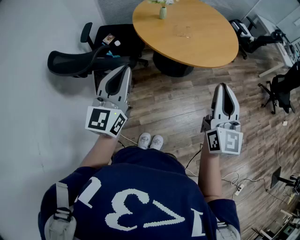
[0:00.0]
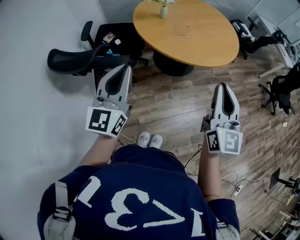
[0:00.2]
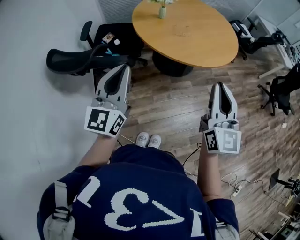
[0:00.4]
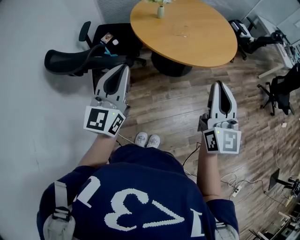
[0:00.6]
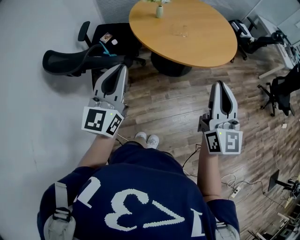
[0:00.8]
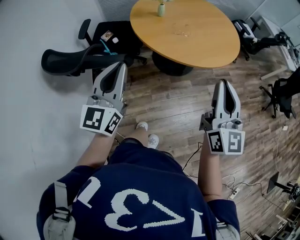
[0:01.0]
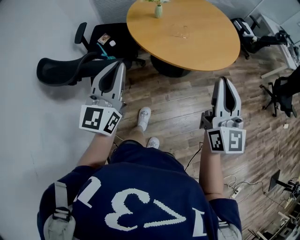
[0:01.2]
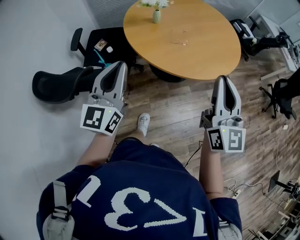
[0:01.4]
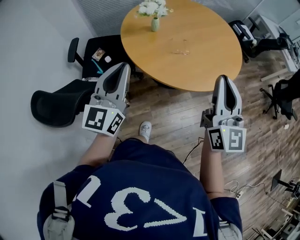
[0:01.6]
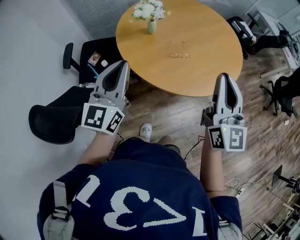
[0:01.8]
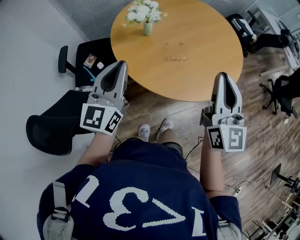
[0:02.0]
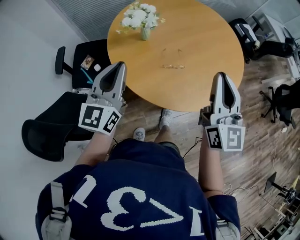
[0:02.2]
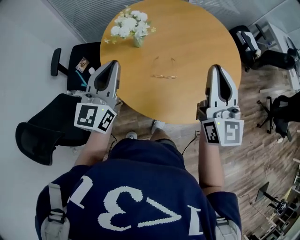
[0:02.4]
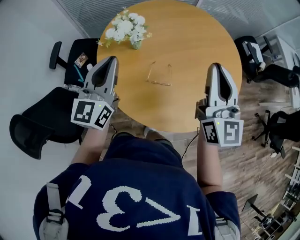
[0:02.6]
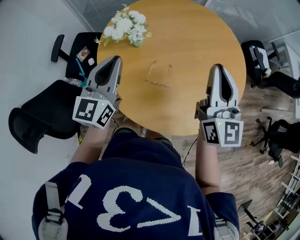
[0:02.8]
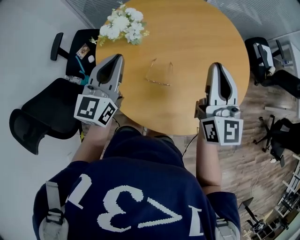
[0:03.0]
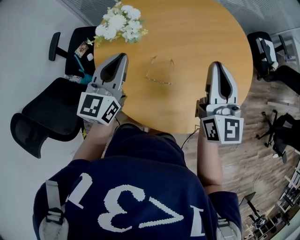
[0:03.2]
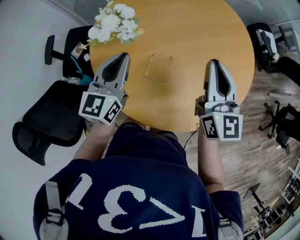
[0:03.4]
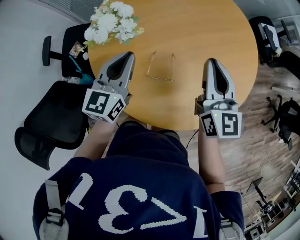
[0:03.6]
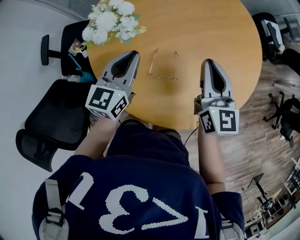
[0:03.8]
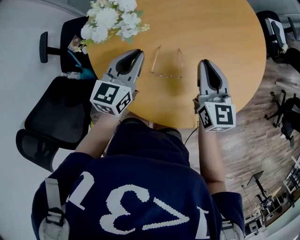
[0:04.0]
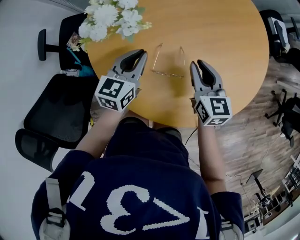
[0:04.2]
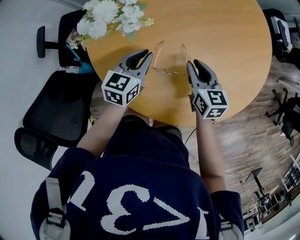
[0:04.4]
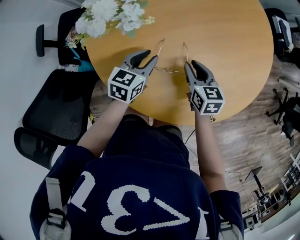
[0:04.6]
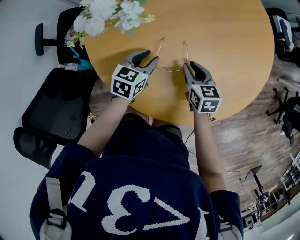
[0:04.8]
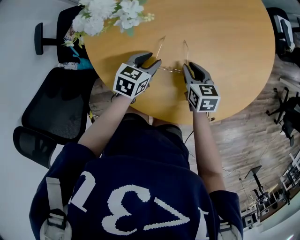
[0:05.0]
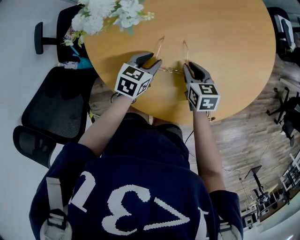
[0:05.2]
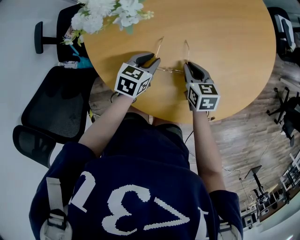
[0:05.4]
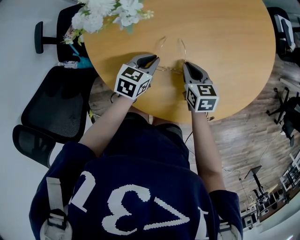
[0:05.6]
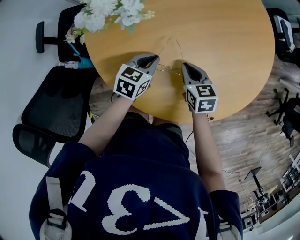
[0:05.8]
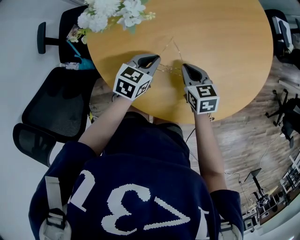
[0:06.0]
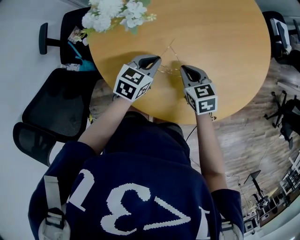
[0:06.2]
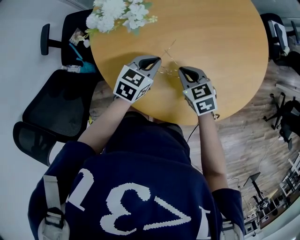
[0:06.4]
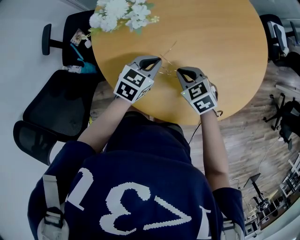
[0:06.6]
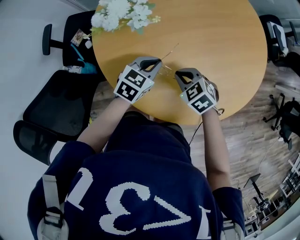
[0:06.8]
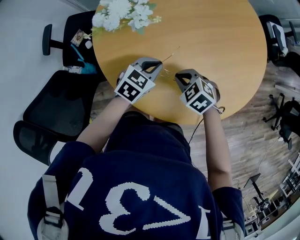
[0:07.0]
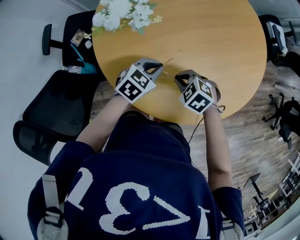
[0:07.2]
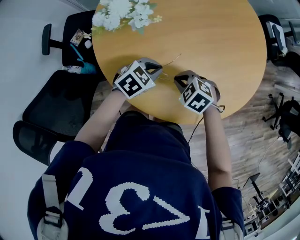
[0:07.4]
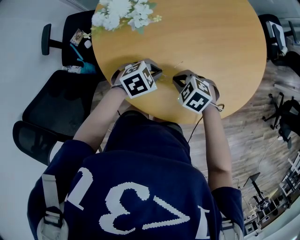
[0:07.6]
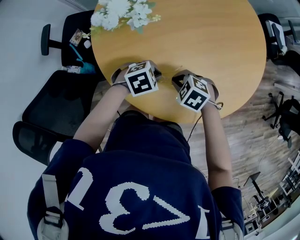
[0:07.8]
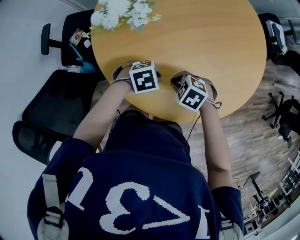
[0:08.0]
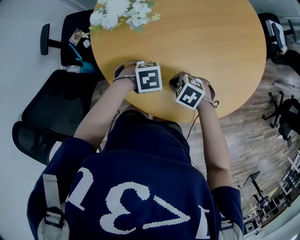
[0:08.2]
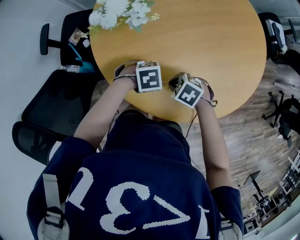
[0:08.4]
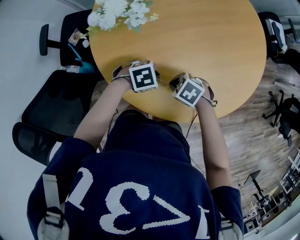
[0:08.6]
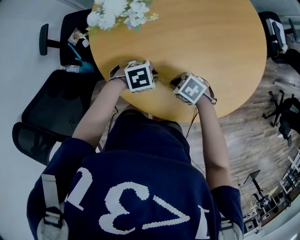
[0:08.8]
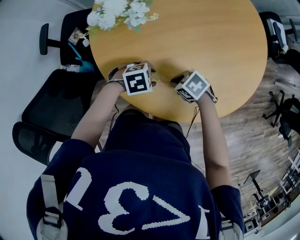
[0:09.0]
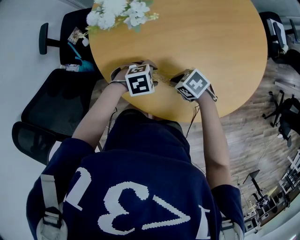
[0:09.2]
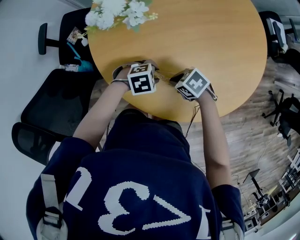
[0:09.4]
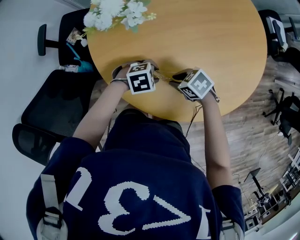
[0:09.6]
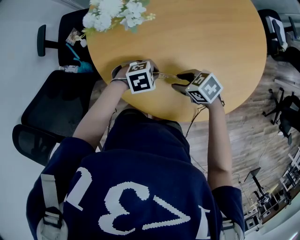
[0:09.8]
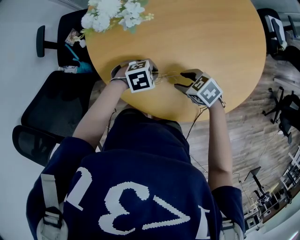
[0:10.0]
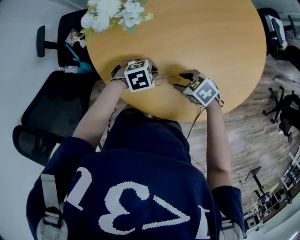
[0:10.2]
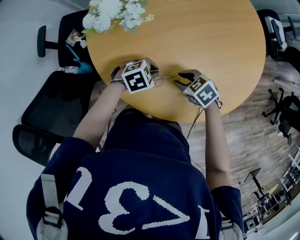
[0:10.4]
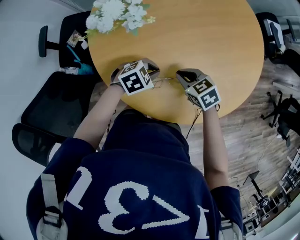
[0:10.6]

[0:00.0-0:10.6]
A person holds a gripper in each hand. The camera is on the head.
0:00.0 to 0:01.6: The two grippers go about 20 cm forward.
0:01.6 to 0:03.0: The grippers both shift forward by about 35 cm.
0:03.0 to 0:04.6: The grippers both shift downward by about 30 cm. The right gripper points its fingers some 40 degrees further downward, while the left gripper tilts its fingers about 30 degrees downward, and opens.
0:04.6 to 0:06.0: The left gripper closes its fingers.
0:06.0 to 0:07.6: The right gripper shifts by roughly 10 cm, and turns by roughly 50 degrees, while the left gripper changes place by approximately 5 cm, and rotates roughly 40 degrees.
0:07.6 to 0:09.0: The left gripper moves roughly 5 cm, and opens up. Meanwhile the right gripper changes its angle by about 20 degrees.
0:09.0 to 0:10.6: The left gripper closes; the right gripper moves roughly 10 cm, turns by some 30 degrees, and opens, then closes again.

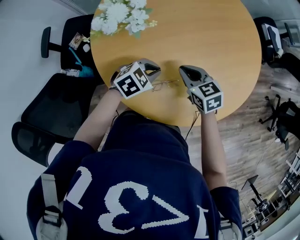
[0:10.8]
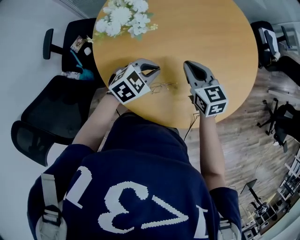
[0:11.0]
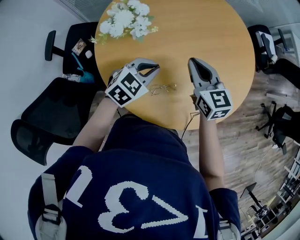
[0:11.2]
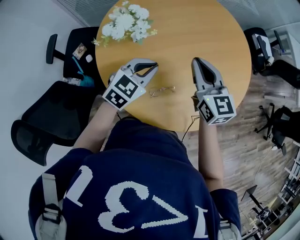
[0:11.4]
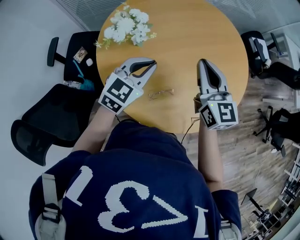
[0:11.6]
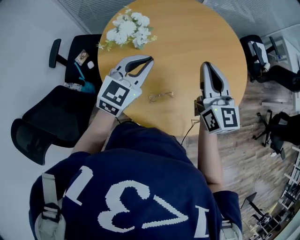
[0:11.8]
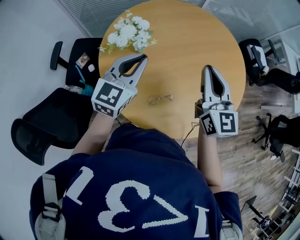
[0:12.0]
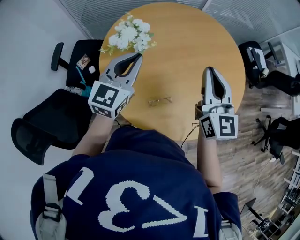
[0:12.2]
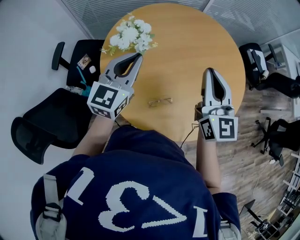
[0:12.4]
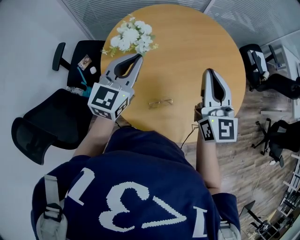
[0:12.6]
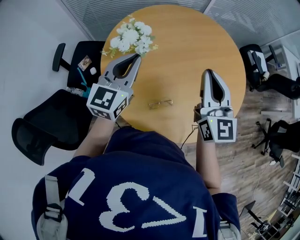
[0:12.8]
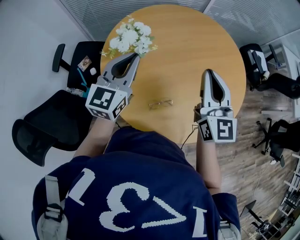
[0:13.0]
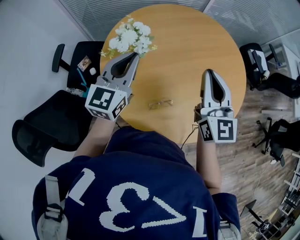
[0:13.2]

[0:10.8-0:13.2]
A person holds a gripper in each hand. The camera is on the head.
0:10.8 to 0:12.0: The two grippers go roughly 25 cm upward. The right gripper tips its fingers upward by some 40 degrees. Meanwhile the left gripper angles its fingers upward, by roughly 40 degrees.
0:12.0 to 0:13.2: There are only small adjustments of the grippers.

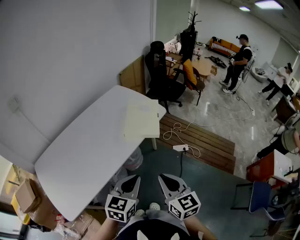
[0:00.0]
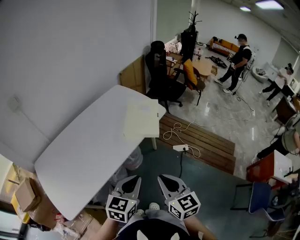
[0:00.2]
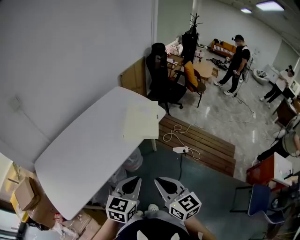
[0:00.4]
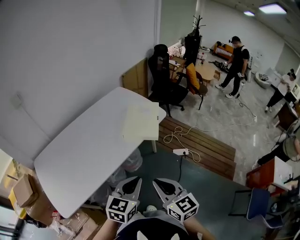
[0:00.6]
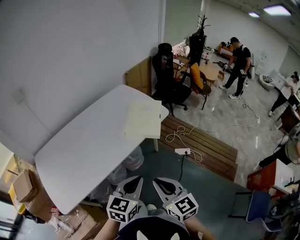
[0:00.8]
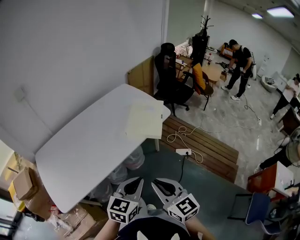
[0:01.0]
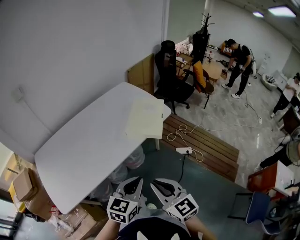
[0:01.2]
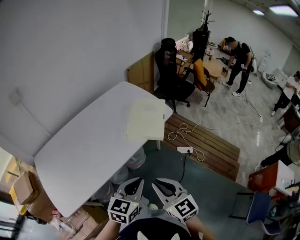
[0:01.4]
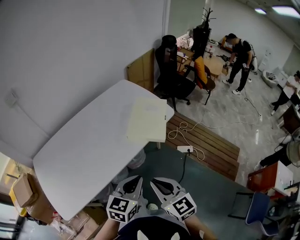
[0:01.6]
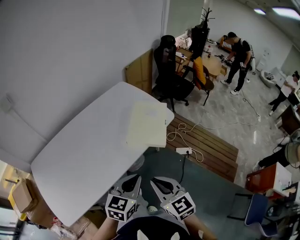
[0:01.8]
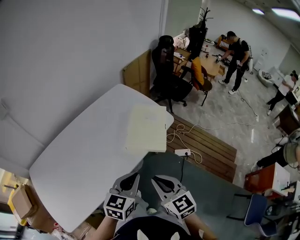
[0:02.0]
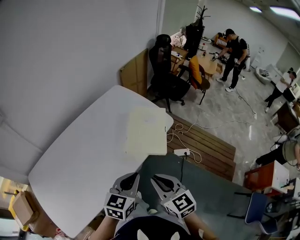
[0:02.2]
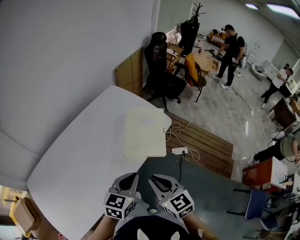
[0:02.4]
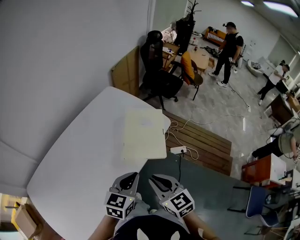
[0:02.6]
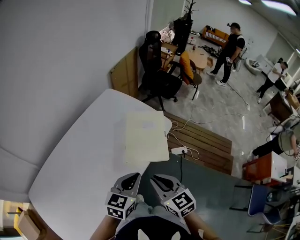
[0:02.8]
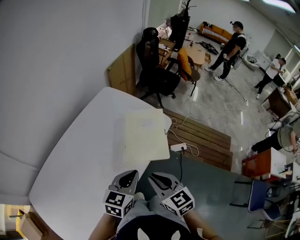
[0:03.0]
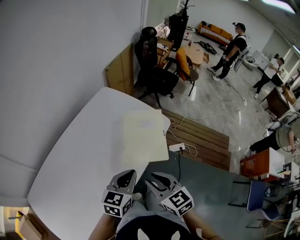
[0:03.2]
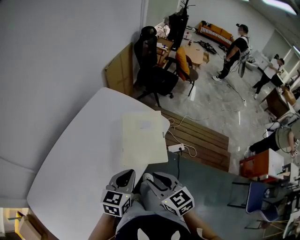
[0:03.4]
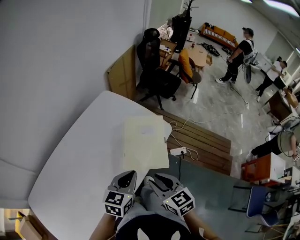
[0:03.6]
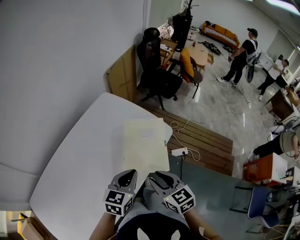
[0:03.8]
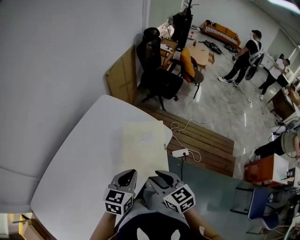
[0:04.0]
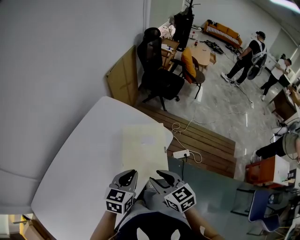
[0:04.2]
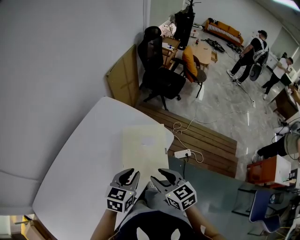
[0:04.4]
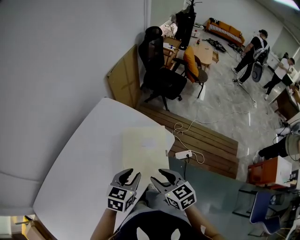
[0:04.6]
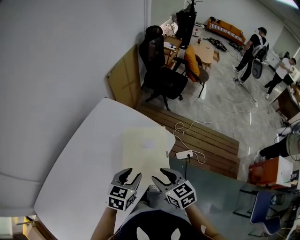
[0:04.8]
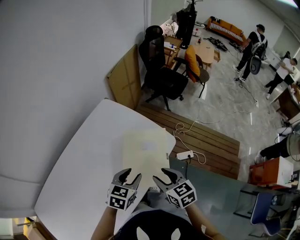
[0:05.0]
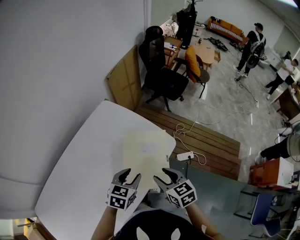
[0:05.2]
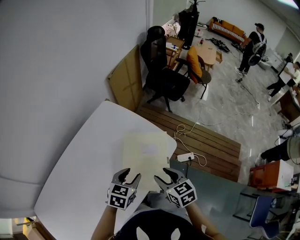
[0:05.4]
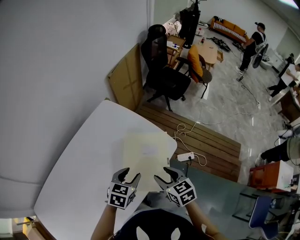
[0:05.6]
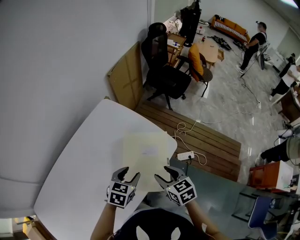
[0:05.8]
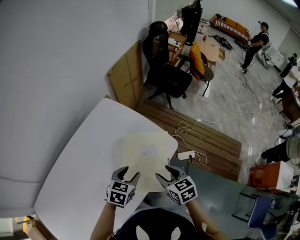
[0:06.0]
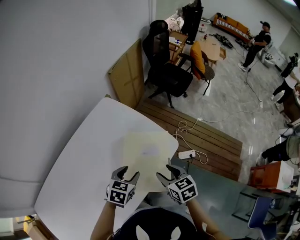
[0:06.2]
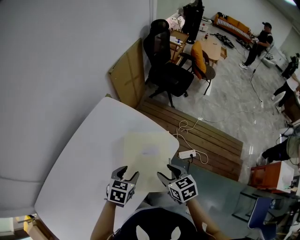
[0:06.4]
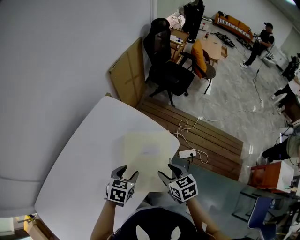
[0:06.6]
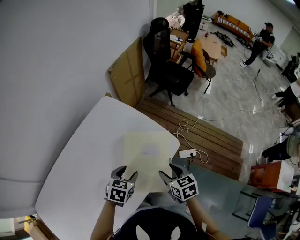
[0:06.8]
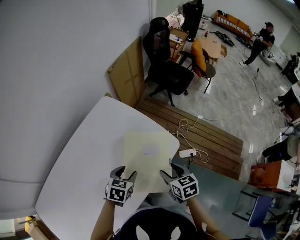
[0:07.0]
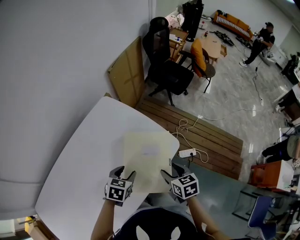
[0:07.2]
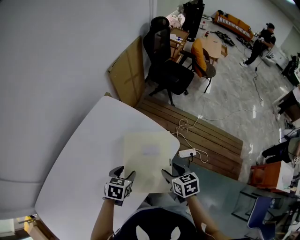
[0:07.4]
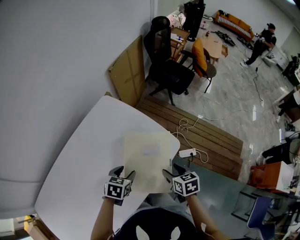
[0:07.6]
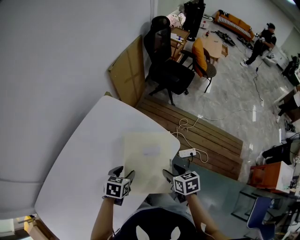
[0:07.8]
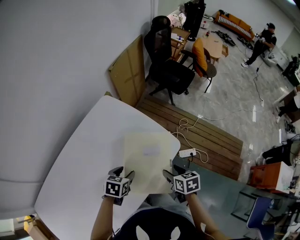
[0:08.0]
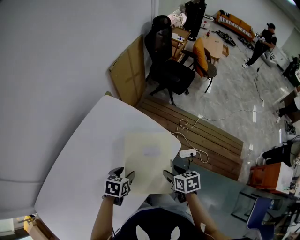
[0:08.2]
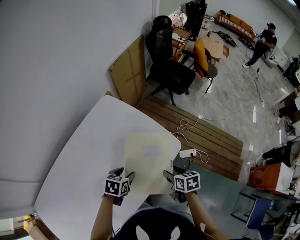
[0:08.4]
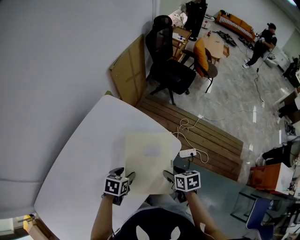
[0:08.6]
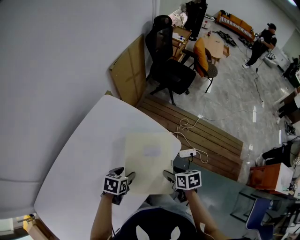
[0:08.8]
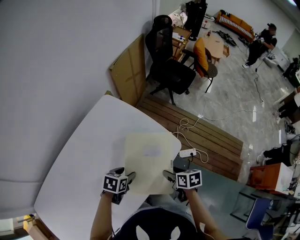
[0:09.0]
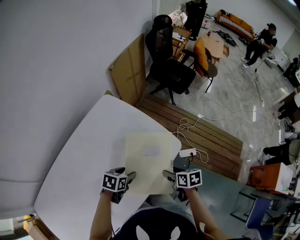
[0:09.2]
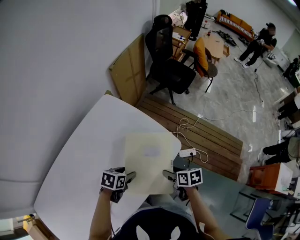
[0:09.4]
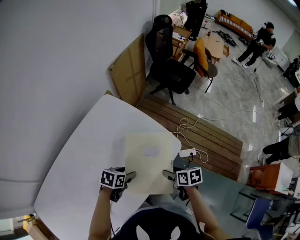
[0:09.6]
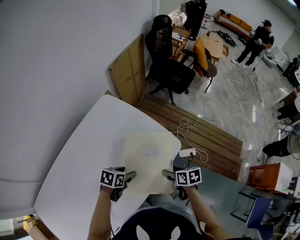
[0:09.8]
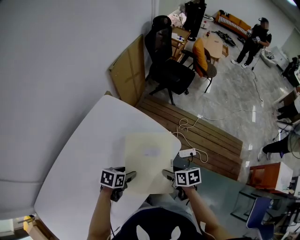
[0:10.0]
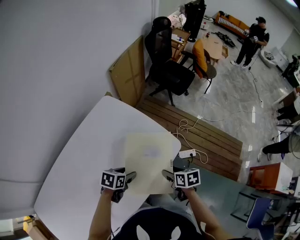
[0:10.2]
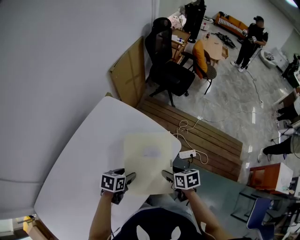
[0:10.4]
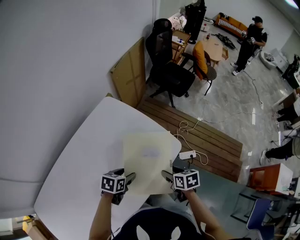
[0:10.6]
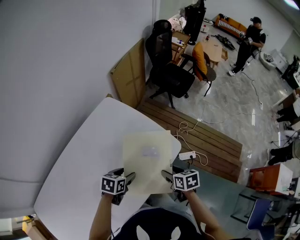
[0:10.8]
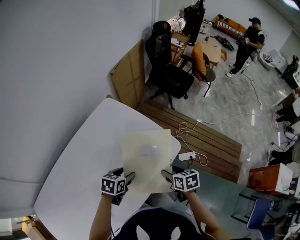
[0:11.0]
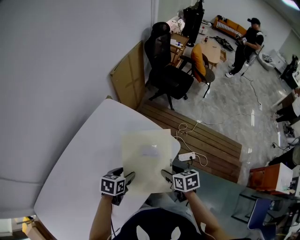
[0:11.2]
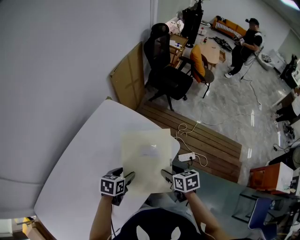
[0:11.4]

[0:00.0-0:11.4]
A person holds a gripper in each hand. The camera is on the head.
0:01.4 to 0:02.8: The grippers both shift forward by approximately 20 cm.
0:02.8 to 0:04.2: Both grippers travel together forward, some 10 cm. The right gripper opens.
0:04.2 to 0:05.6: The two grippers go some 10 cm forward and downward. The left gripper opens up.
0:05.6 to 0:07.2: The right gripper changes place by about 5 cm; the left gripper moves downward, roughly 5 cm.
0:07.2 to 0:08.6: The right gripper ends up about 5 cm from where it was.
0:08.6 to 0:11.4: The grippers stay close to where they were, moving slightly.
